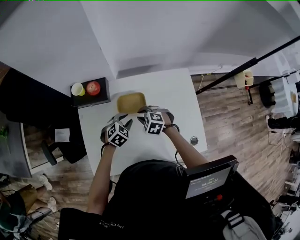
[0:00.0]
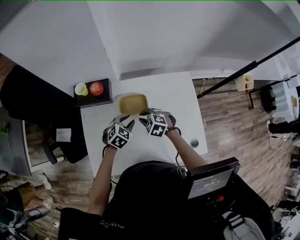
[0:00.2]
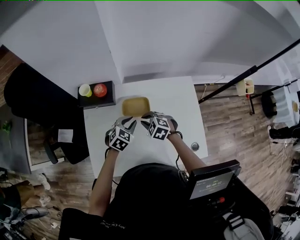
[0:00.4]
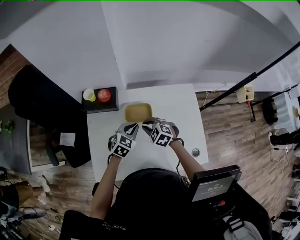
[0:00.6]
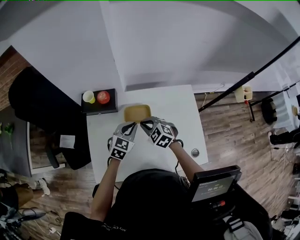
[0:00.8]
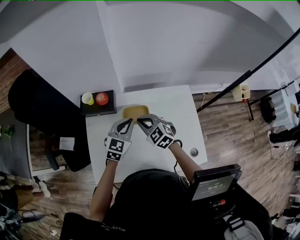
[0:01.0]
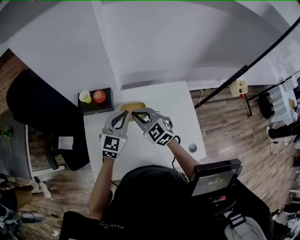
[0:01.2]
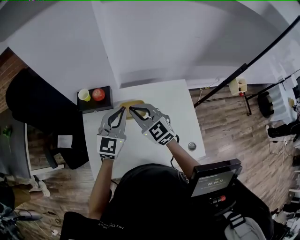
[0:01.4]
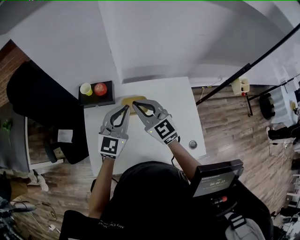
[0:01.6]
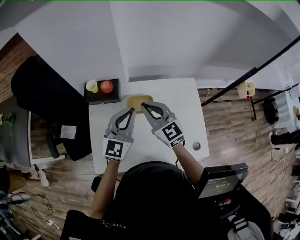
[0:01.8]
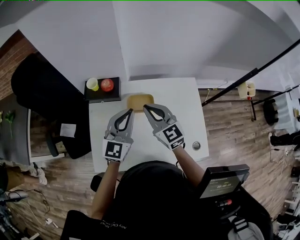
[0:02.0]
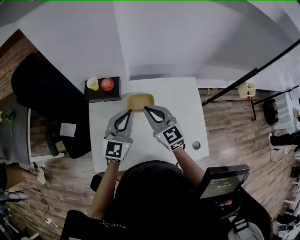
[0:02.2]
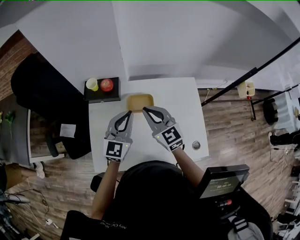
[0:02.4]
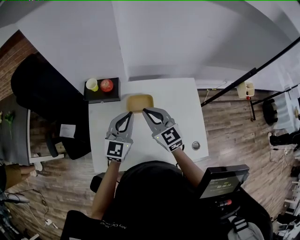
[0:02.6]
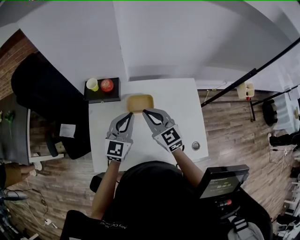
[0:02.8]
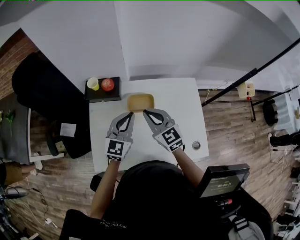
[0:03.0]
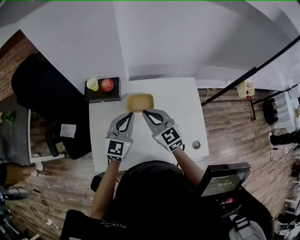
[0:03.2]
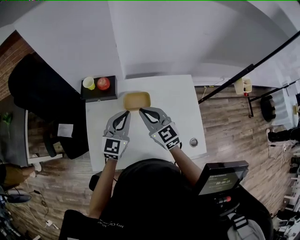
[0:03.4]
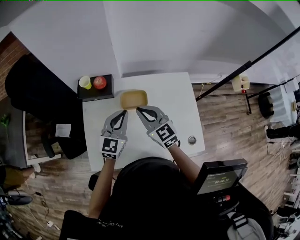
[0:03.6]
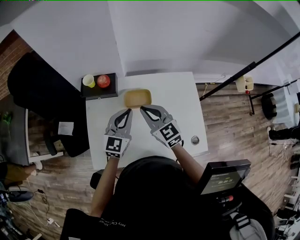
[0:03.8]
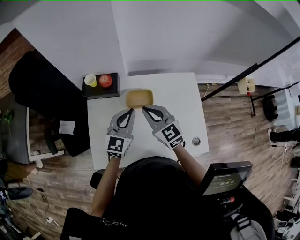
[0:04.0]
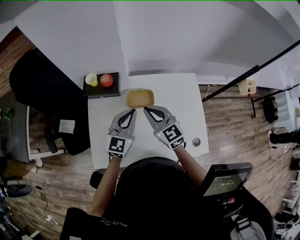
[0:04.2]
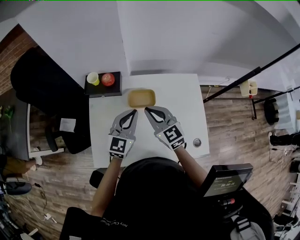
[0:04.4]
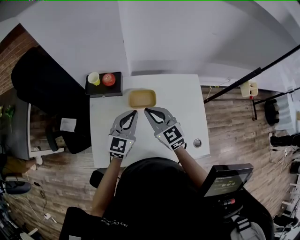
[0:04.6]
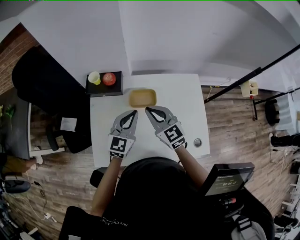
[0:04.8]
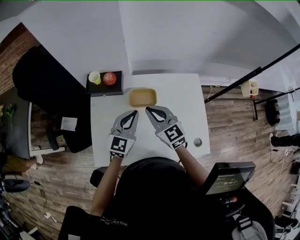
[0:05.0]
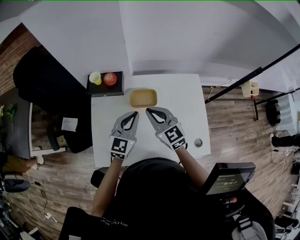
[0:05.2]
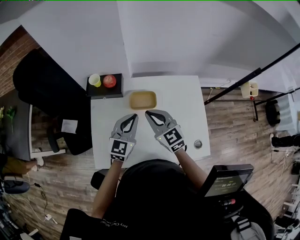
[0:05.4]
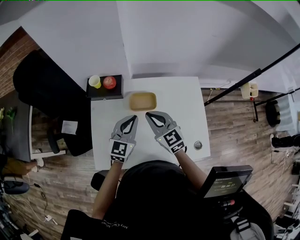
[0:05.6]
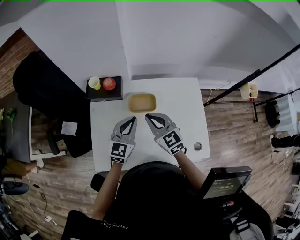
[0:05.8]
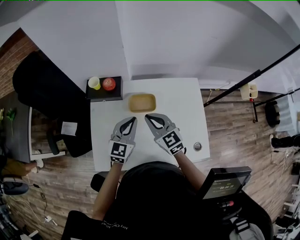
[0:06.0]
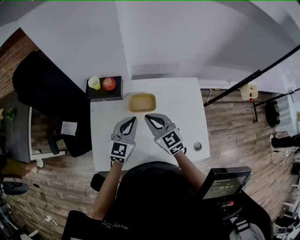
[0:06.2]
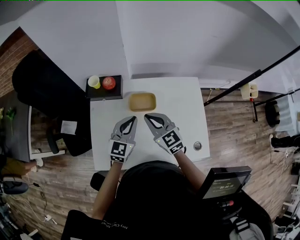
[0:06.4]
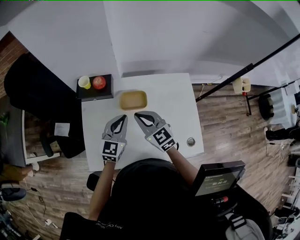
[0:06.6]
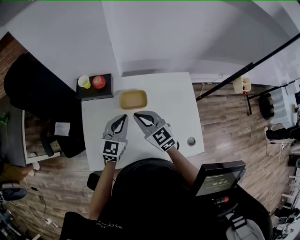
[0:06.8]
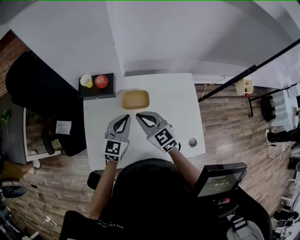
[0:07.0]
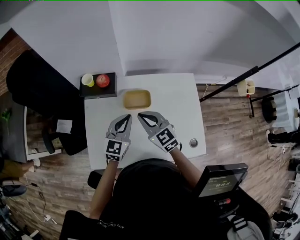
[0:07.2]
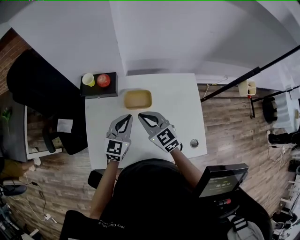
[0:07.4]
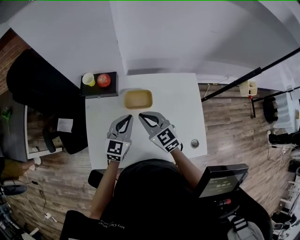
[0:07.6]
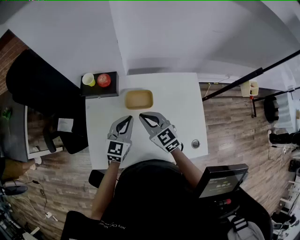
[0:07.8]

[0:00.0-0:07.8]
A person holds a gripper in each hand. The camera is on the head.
0:00.0 to 0:01.6: The grippers both shift upward by approximately 25 cm. The right gripper tips its fingers upward by about 50 degrees; the left gripper points its fingers roughly 50 degrees further upward, and closes up.
0:01.6 to 0:03.2: Both grippers move downward, roughly 5 cm.
0:03.2 to 0:06.2: The grippers move only a little.
0:06.2 to 0:07.8: The grippers make only small movements.

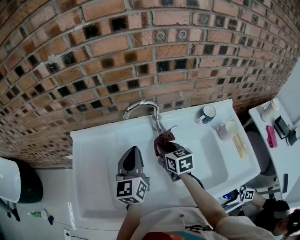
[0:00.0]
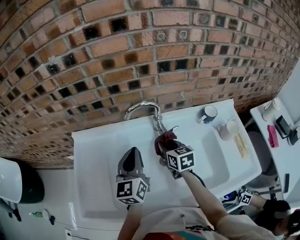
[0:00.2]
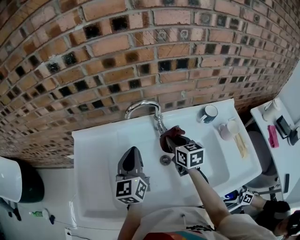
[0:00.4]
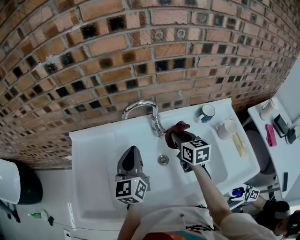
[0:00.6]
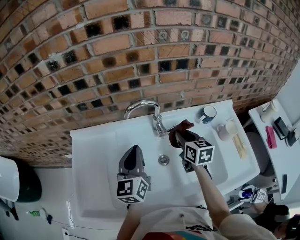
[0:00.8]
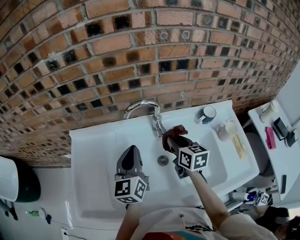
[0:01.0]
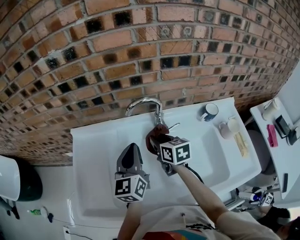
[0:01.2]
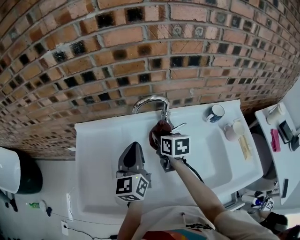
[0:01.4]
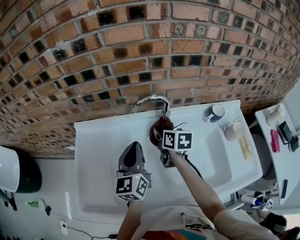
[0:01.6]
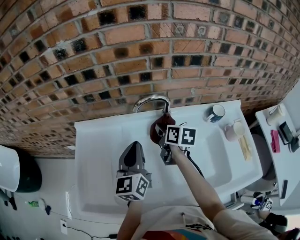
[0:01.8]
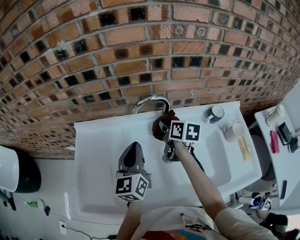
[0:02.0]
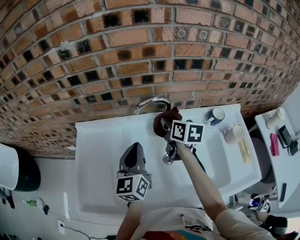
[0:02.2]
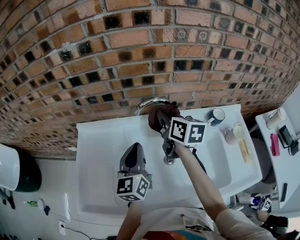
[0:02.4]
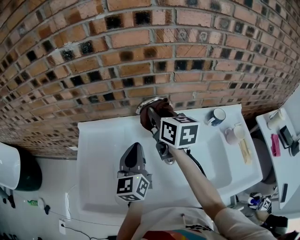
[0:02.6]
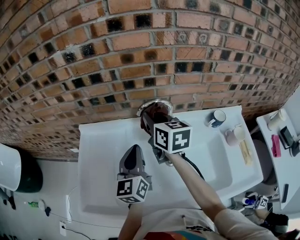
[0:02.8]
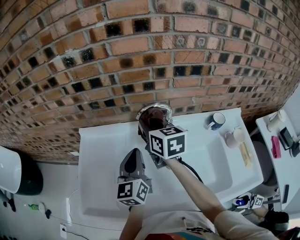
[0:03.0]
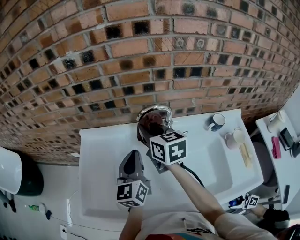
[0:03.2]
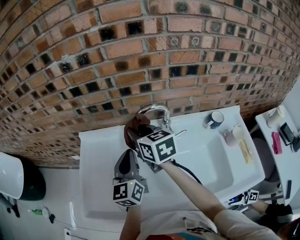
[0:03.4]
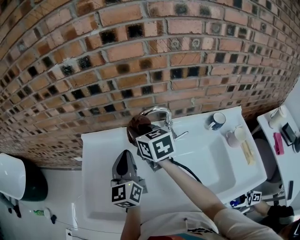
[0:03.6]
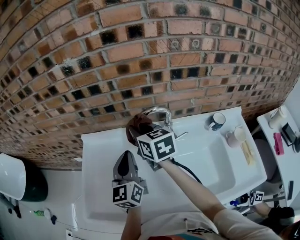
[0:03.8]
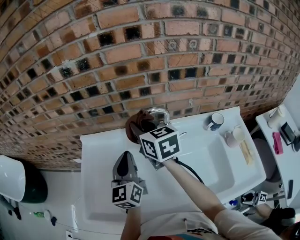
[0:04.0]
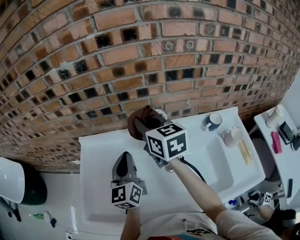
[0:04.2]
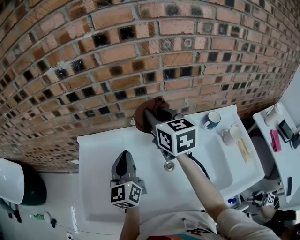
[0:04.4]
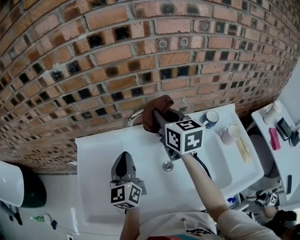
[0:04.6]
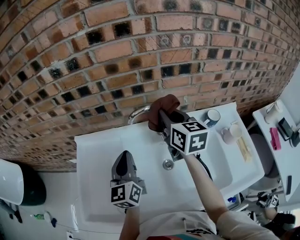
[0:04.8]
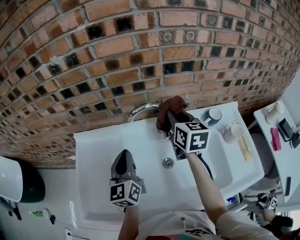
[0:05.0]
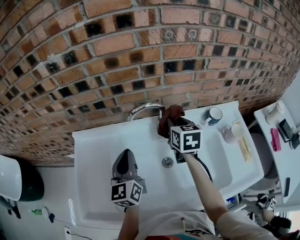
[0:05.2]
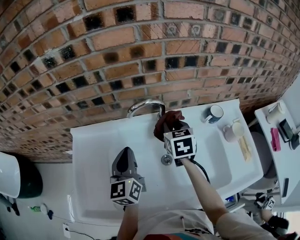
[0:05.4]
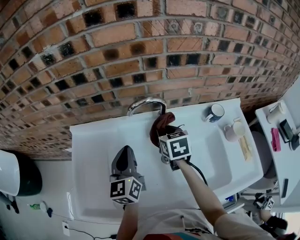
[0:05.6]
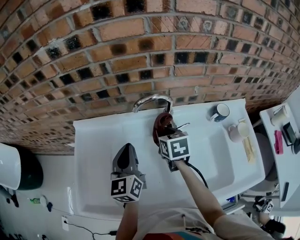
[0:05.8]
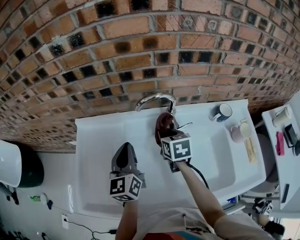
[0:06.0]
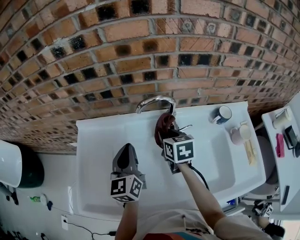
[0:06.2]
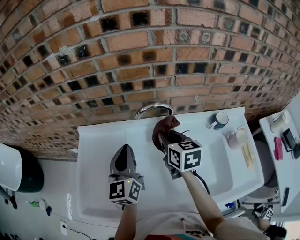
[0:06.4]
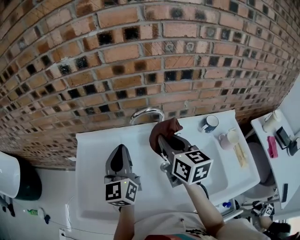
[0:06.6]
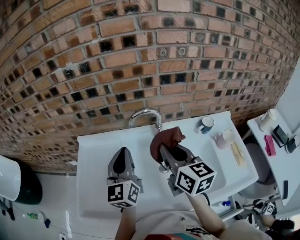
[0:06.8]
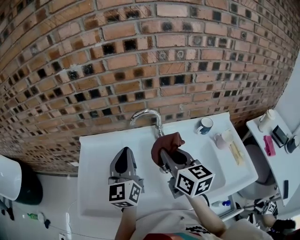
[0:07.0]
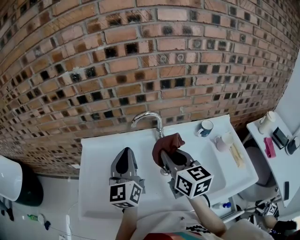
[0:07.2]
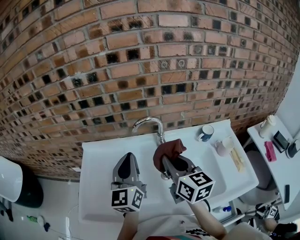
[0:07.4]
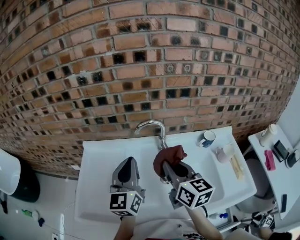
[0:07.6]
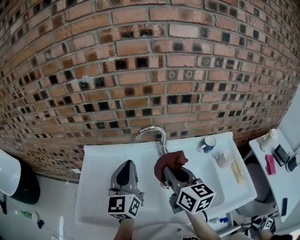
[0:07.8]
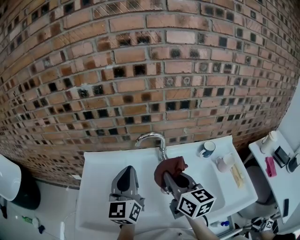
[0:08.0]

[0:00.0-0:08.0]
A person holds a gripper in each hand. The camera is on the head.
0:00.0 to 0:01.6: The right gripper is displaced upward and forward by roughly 10 cm, and moves approximately 15 cm to the right and comes back.
0:01.6 to 0:03.2: The right gripper is displaced upward and to the left by roughly 15 cm, and changes its angle by about 20 degrees.
0:03.2 to 0:04.8: The right gripper moves to the right, roughly 15 cm.
0:04.8 to 0:06.4: The right gripper is displaced downward and to the left by roughly 10 cm.
0:06.4 to 0:08.0: The left gripper heads upward and backward, covering roughly 10 cm; the right gripper shifts approximately 15 cm backward and upward.

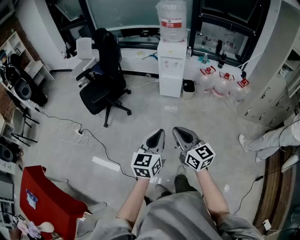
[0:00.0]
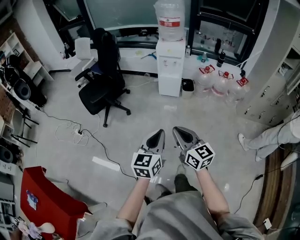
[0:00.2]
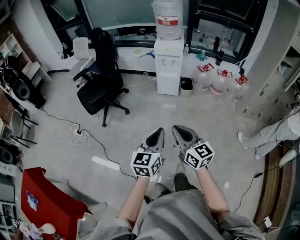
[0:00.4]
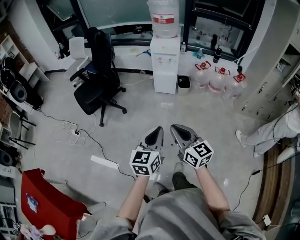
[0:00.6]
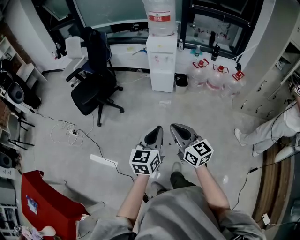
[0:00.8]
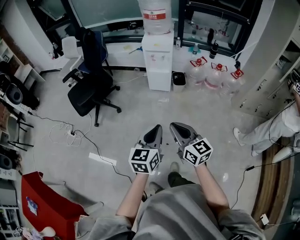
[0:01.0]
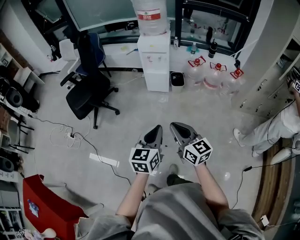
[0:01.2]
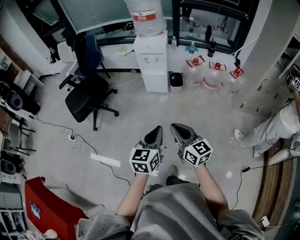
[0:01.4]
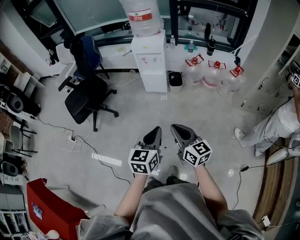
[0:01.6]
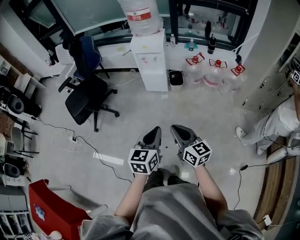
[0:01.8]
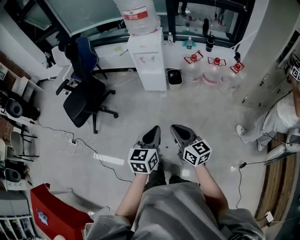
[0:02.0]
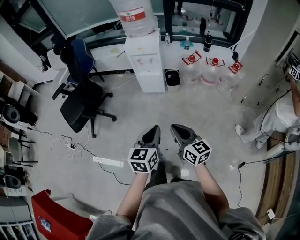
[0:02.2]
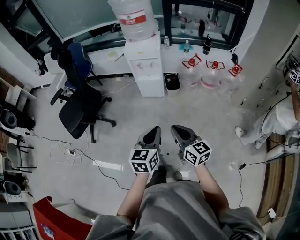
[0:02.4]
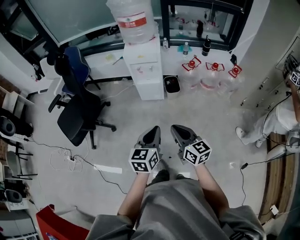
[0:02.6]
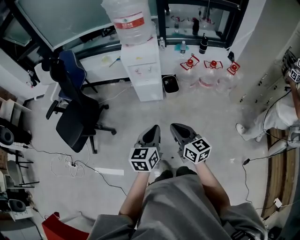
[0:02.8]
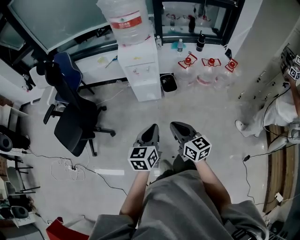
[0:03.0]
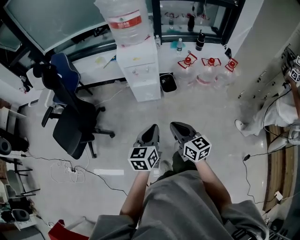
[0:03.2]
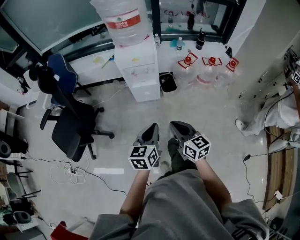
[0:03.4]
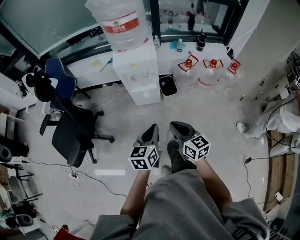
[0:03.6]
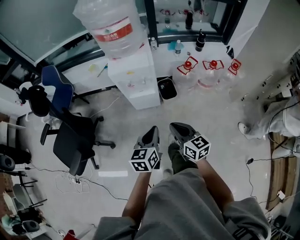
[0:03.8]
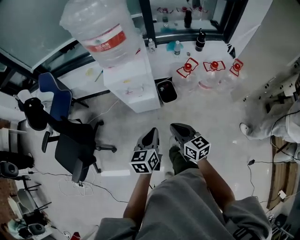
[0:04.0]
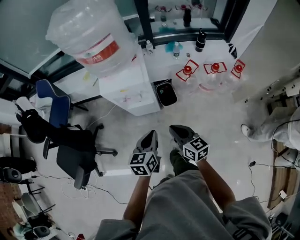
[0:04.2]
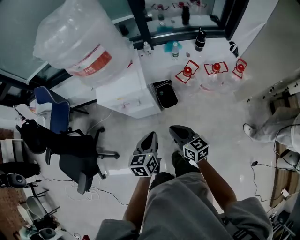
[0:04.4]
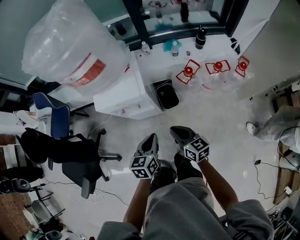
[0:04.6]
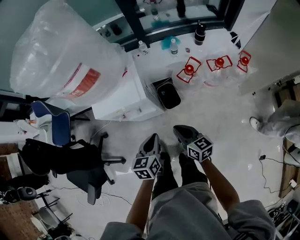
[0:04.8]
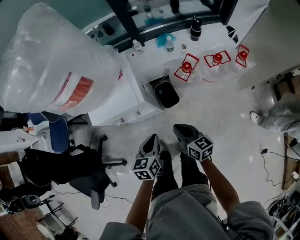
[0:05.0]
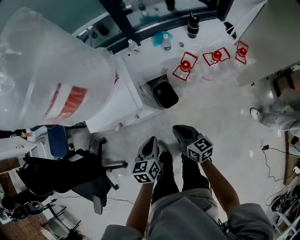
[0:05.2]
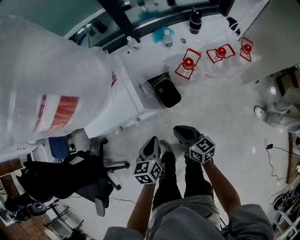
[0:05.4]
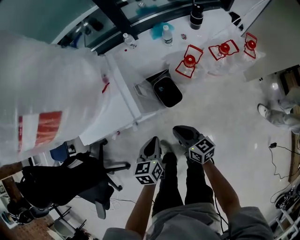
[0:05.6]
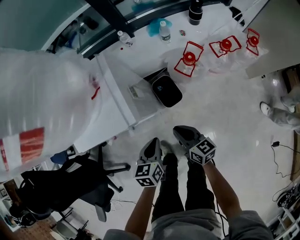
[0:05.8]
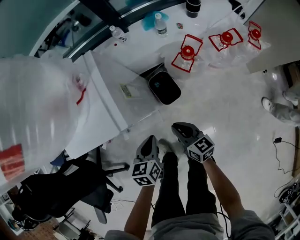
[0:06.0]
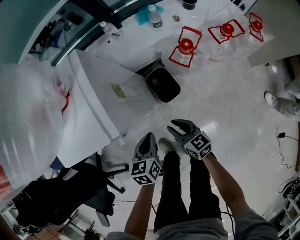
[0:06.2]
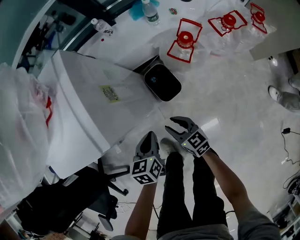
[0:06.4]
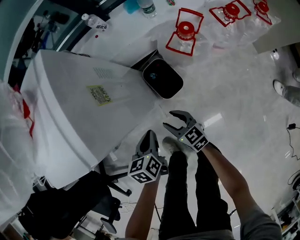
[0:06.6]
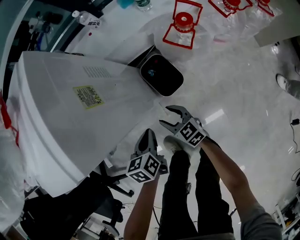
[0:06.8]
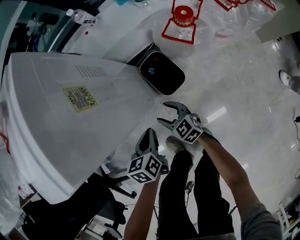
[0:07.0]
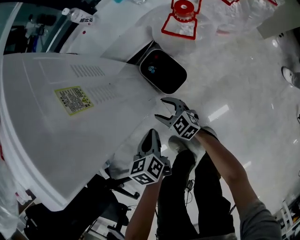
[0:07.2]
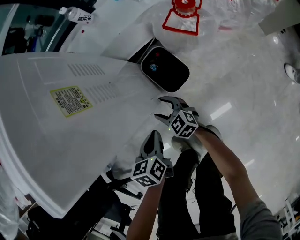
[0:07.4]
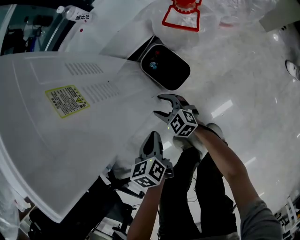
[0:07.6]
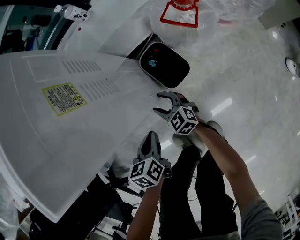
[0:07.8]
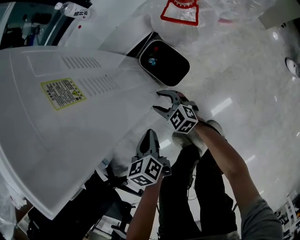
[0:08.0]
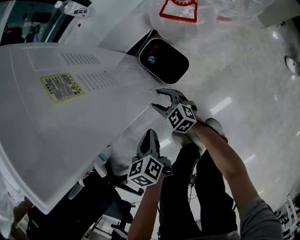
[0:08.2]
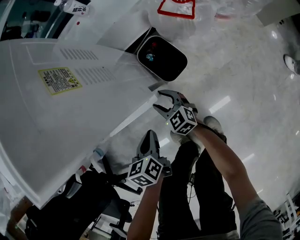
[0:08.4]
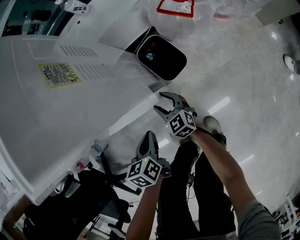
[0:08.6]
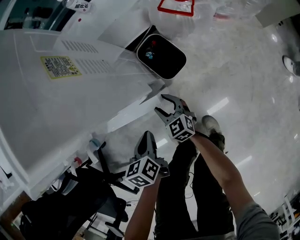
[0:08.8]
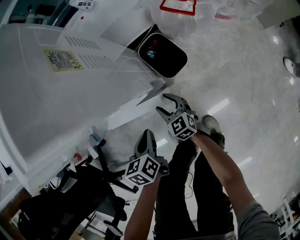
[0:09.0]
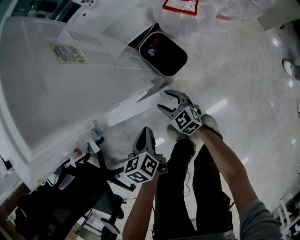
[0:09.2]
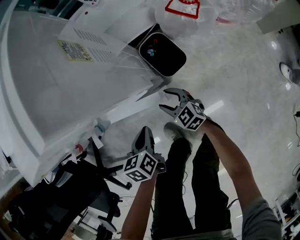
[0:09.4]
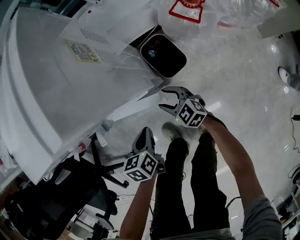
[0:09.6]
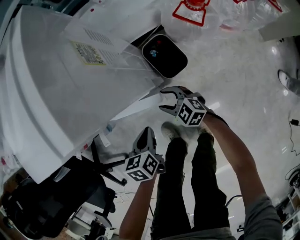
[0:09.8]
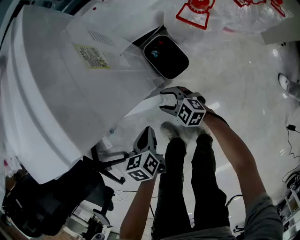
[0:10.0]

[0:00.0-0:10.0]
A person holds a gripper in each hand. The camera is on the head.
0:00.0 to 0:01.4: Both grippers travel together to the right and forward, some 20 cm.
0:01.4 to 0:02.8: The two grippers go roughly 20 cm forward.
0:02.8 to 0:04.2: Both grippers move forward, roughly 30 cm.
0:04.2 to 0:05.8: The grippers both shift downward and forward by about 25 cm.
0:05.8 to 0:07.2: The two grippers go some 30 cm downward. The right gripper rotates approximately 30 degrees, and opens.
0:07.2 to 0:08.6: The left gripper moves to the left, some 5 cm.
0:08.6 to 0:10.0: The right gripper is displaced upward by some 5 cm, and rotates roughly 30 degrees.
